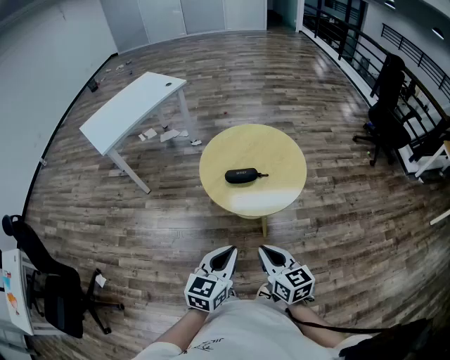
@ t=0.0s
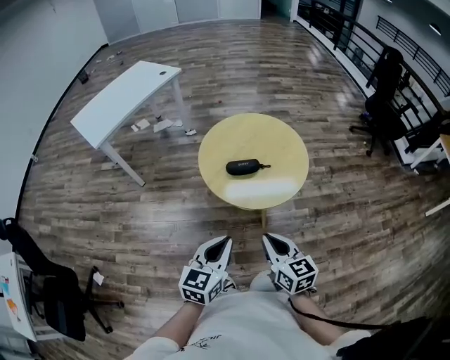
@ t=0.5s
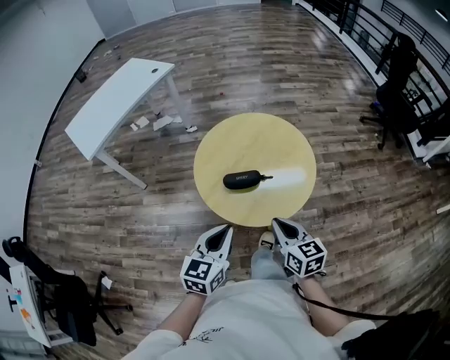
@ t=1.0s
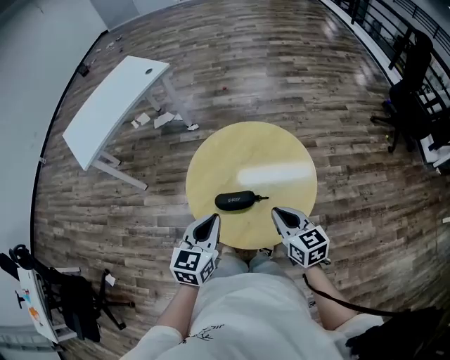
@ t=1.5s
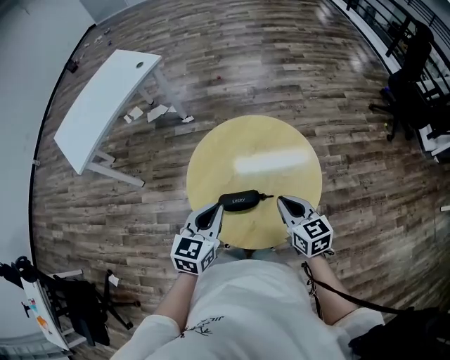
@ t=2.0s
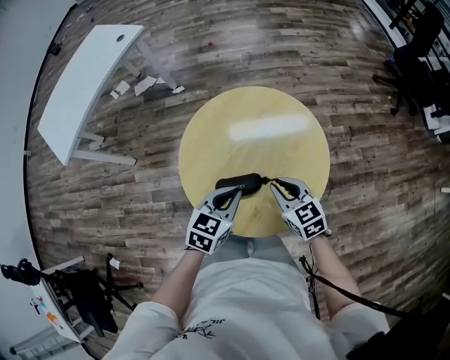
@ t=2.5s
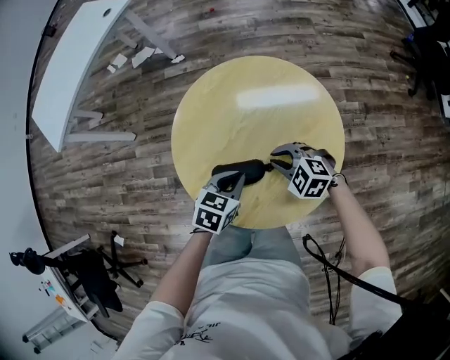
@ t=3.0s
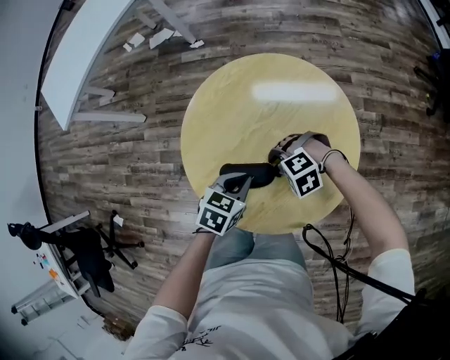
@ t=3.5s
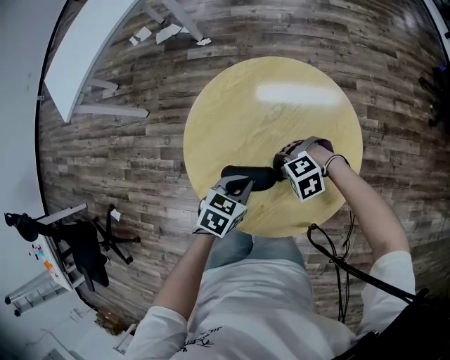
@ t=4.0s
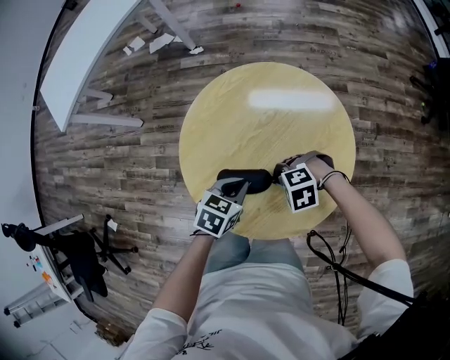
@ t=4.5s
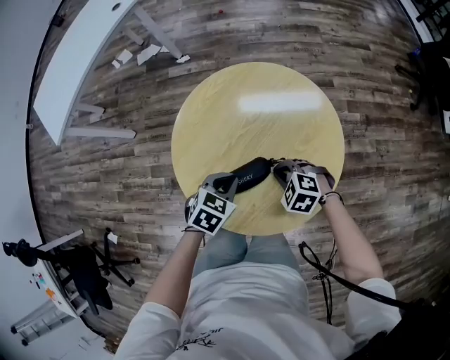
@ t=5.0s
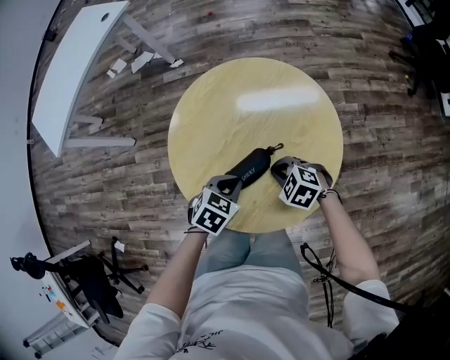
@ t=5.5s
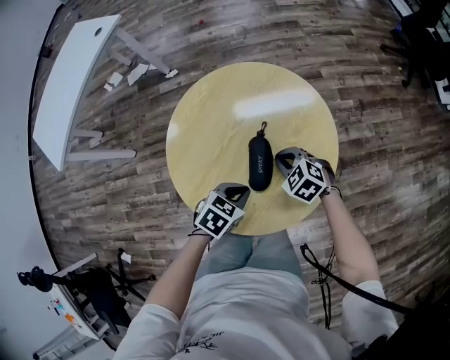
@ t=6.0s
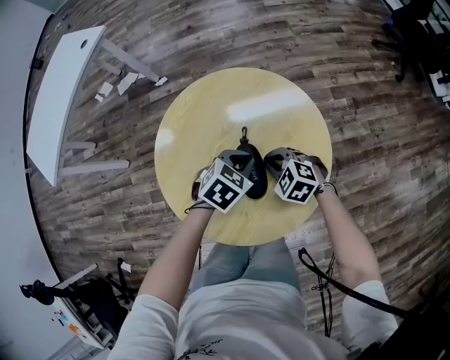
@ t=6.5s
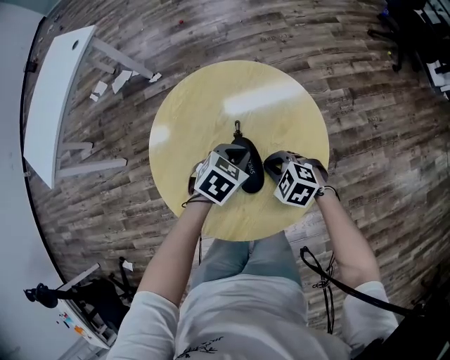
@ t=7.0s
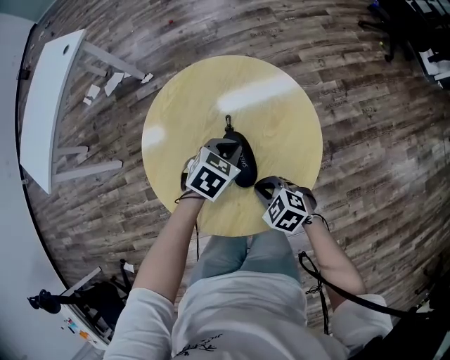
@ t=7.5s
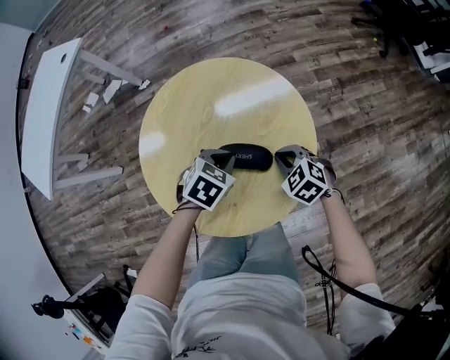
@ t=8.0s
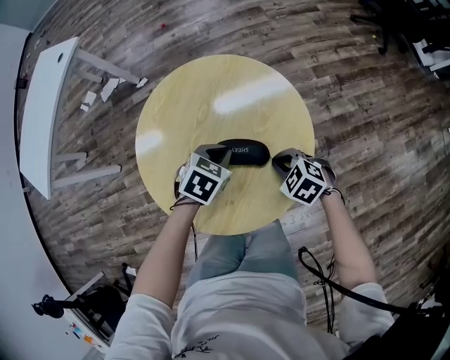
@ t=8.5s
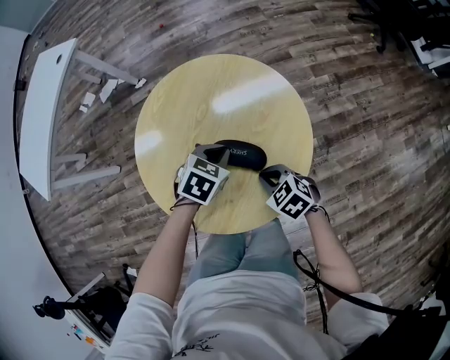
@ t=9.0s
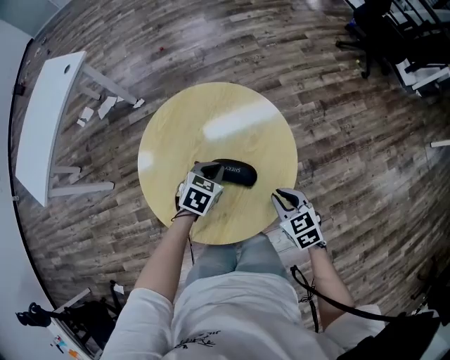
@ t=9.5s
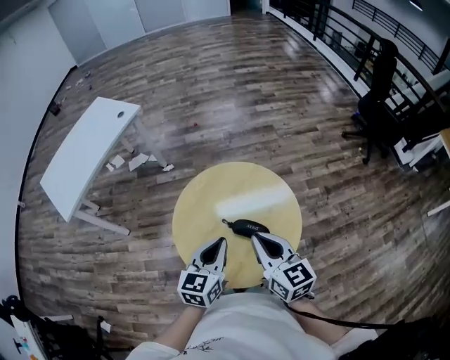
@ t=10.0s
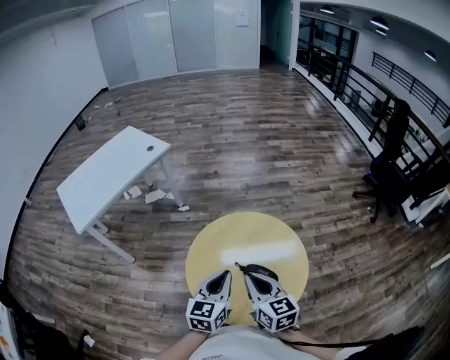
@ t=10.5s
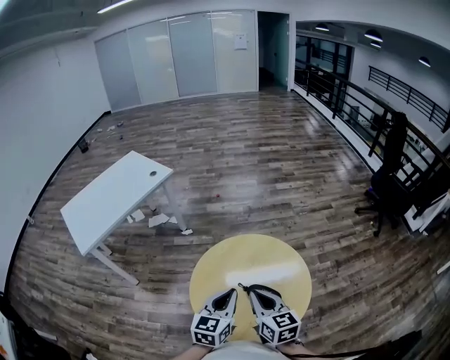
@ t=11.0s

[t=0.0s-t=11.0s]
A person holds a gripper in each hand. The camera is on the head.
t=0.0s to t=2.0s: Both grippers travel together forward, approximately 40 cm.
t=2.0s to t=3.5s: The grippers both shift downward by about 25 cm. The right gripper angles its fingers downward, by about 40 degrees, while the left gripper swivels about 30 degrees.
t=3.5s to t=5.5s: The right gripper rolls clockwise, seen from behind, by approximately 50 degrees.
t=5.5s to t=7.5s: The left gripper ends up some 15 cm from where it was; the right gripper shifts by approximately 5 cm.
t=9.0s to t=11.0s: The grippers both shift upward by approximately 30 cm. The right gripper tilts its fingers roughly 40 degrees upward. Meanwhile the left gripper tilts its fingers approximately 40 degrees upward.

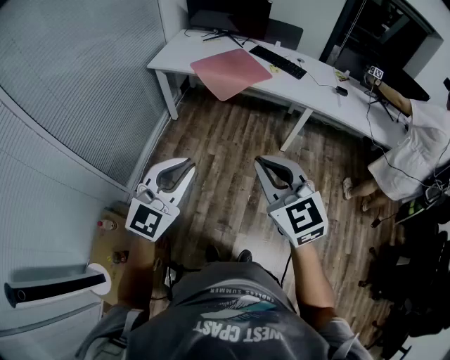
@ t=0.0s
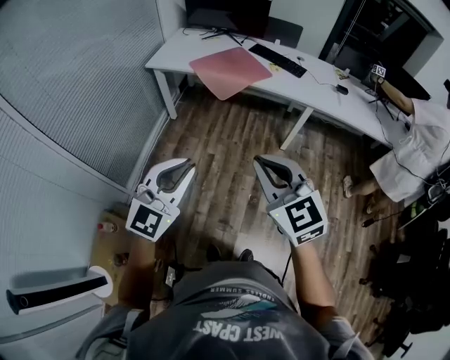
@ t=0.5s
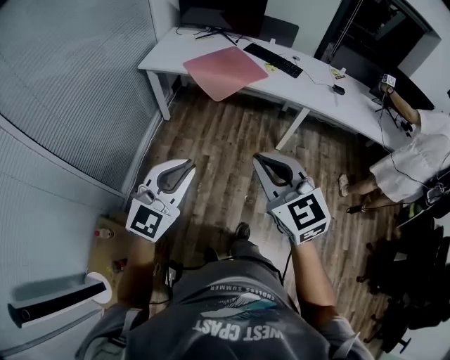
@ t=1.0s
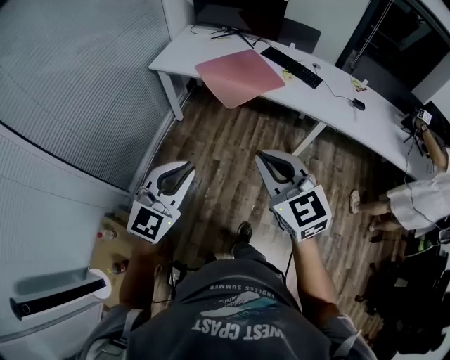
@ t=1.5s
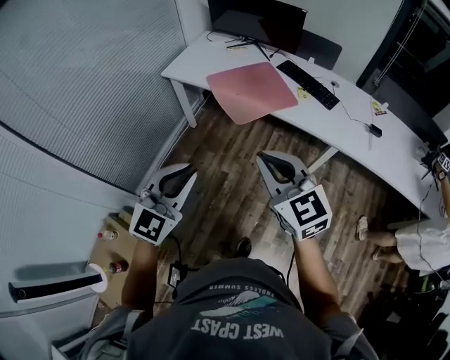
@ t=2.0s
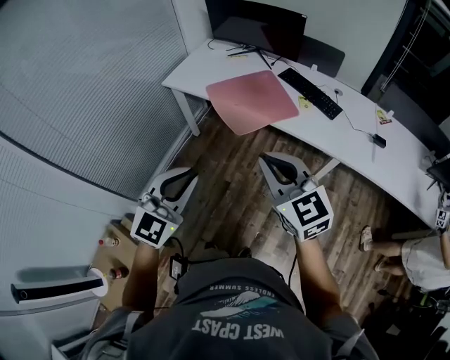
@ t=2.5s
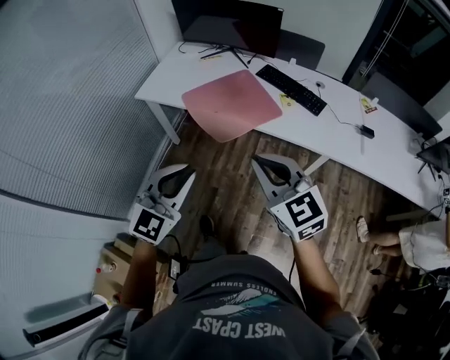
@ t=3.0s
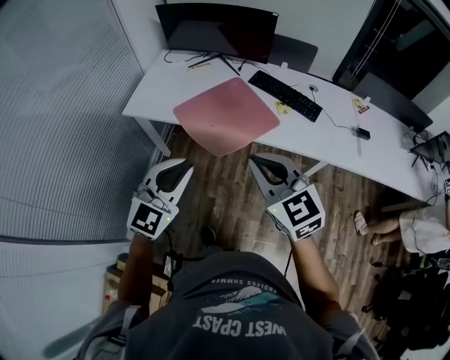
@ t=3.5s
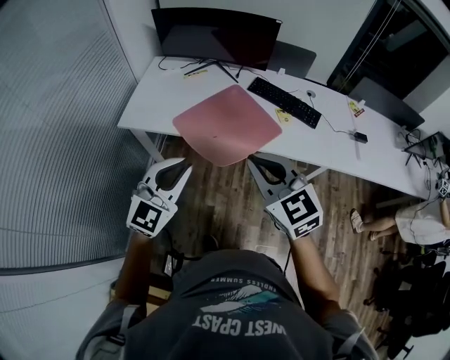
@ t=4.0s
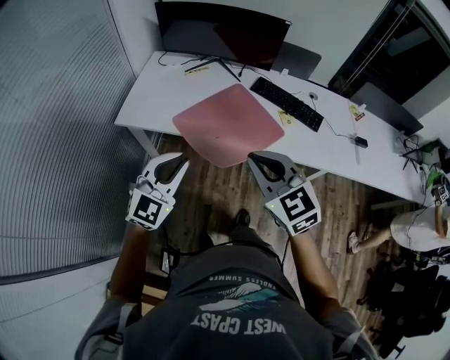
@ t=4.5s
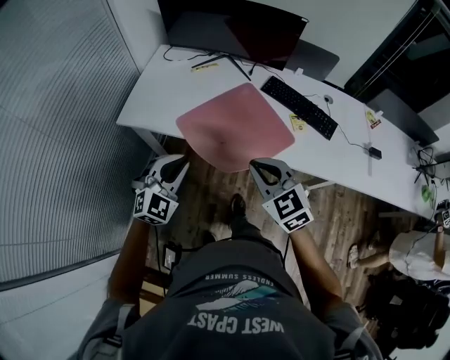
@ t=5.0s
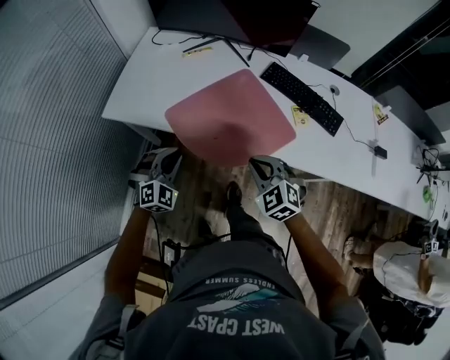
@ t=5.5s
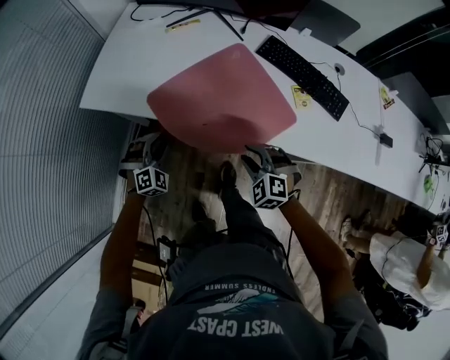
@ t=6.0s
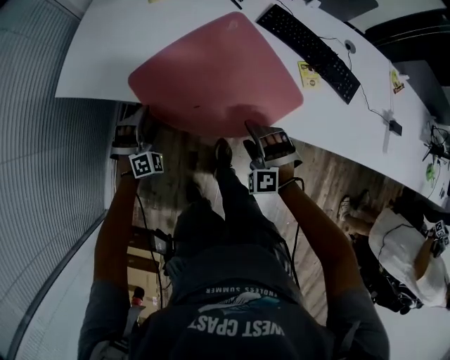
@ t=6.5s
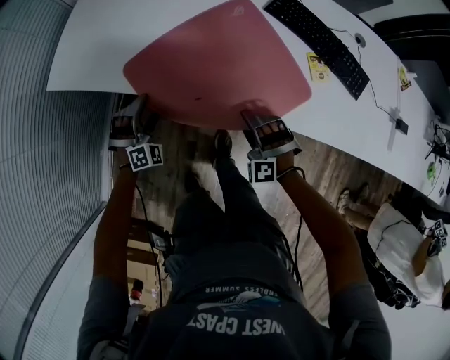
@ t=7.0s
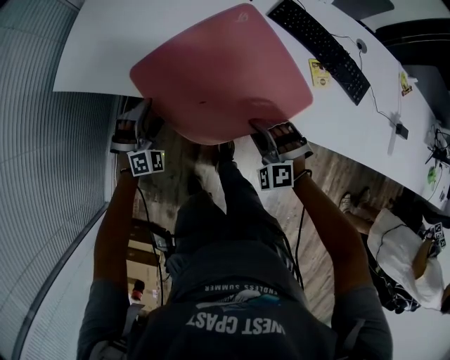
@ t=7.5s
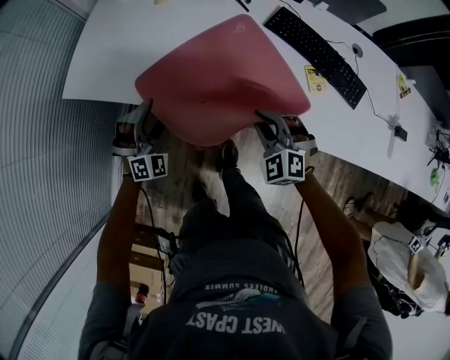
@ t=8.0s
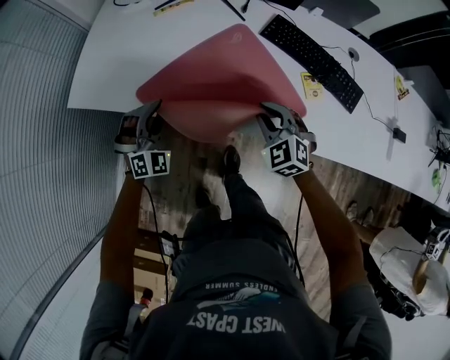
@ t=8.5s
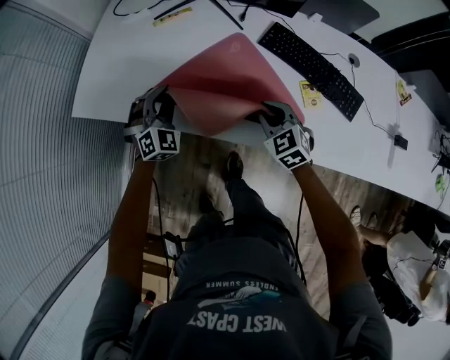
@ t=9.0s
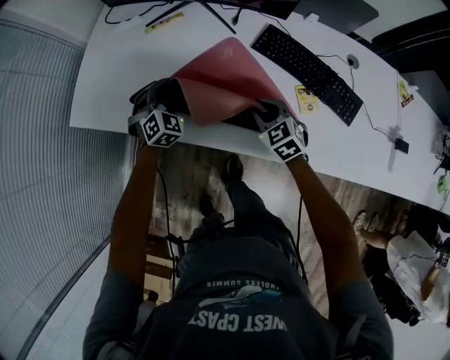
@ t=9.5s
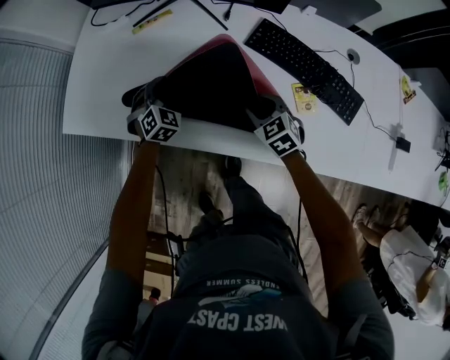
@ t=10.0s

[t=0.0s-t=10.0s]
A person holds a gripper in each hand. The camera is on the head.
t=0.0s to t=2.0s: Both grippers move forward, roughly 25 cm.
t=2.0s to t=4.0s: Both grippers travel together forward, approximately 30 cm.
t=4.0s to t=6.0s: The grippers both shift downward and forward by approximately 40 cm. The left gripper tilts its fingers roughly 30 degrees downward; the right gripper tips its fingers downward by roughly 30 degrees, and opens its fingers.
t=6.0s to t=8.0s: The right gripper is displaced forward by about 10 cm, goes downward and returns, roughly 10 cm each way, and opens, then closes again. The left gripper travels forward by about 5 cm, reaches some 10 cm downward, then returns, and opens its fingers.
t=8.0s to t=10.0s: The right gripper travels forward, to the right and downward by about 15 cm, and rotates about 40 degrees. Meanwhile the left gripper shifts roughly 20 cm forward and to the right, rotates some 30 degrees, and closes its fingers.

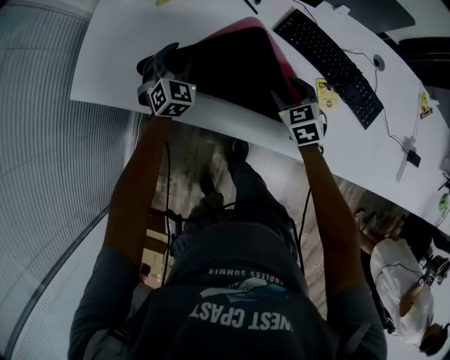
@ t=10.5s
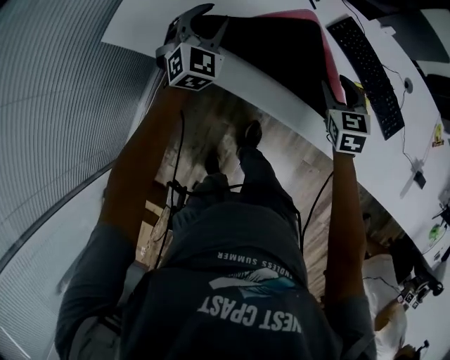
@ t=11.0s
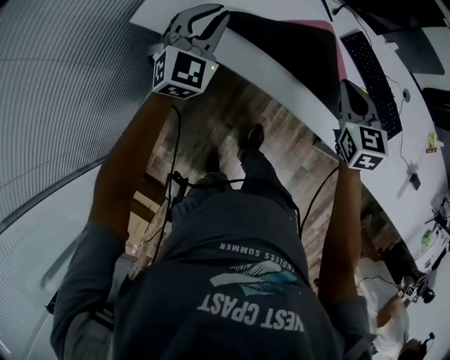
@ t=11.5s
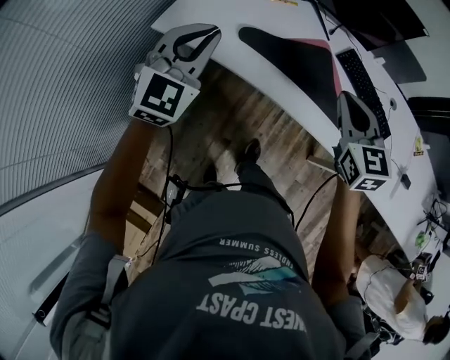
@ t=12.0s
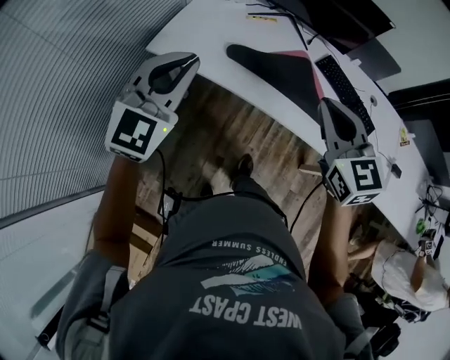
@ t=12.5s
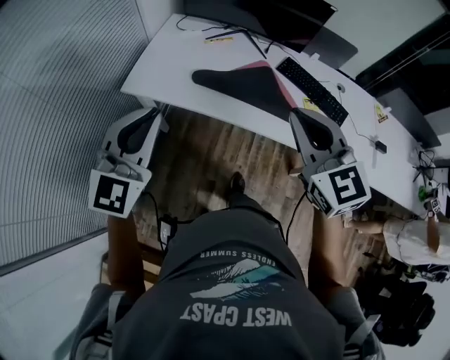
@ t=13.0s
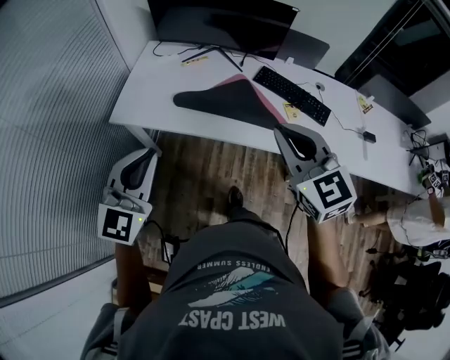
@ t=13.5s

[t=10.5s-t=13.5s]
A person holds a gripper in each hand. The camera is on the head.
t=10.5s to t=12.0s: The left gripper moves upward, backward and to the left, about 40 cm, swivels about 30 degrees, and closes up, while the right gripper travels upward, to the left and backward by approximately 35 cm, rotates some 30 degrees, and closes its fingers.
t=12.0s to t=13.5s: The left gripper is displaced backward by approximately 15 cm. Meanwhile the right gripper goes approximately 20 cm backward and upward.

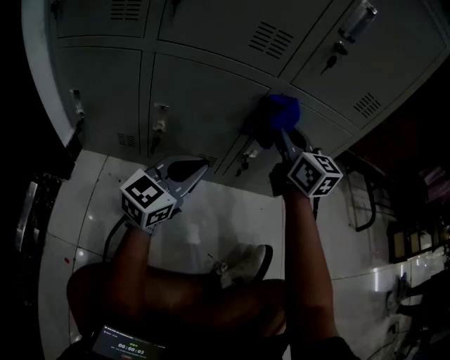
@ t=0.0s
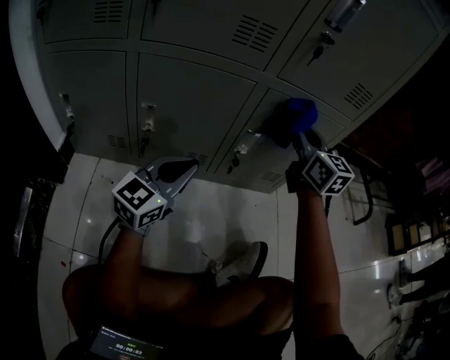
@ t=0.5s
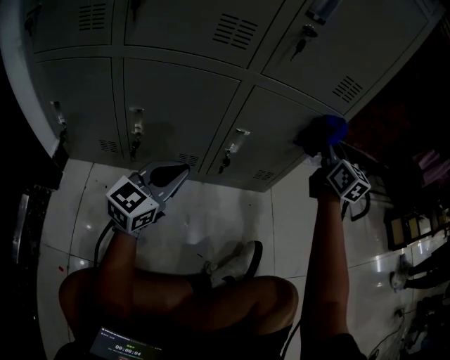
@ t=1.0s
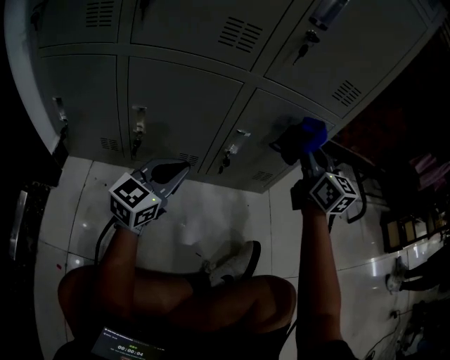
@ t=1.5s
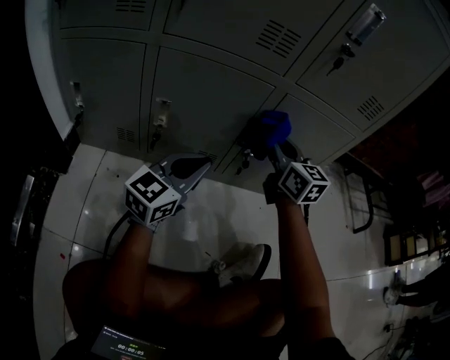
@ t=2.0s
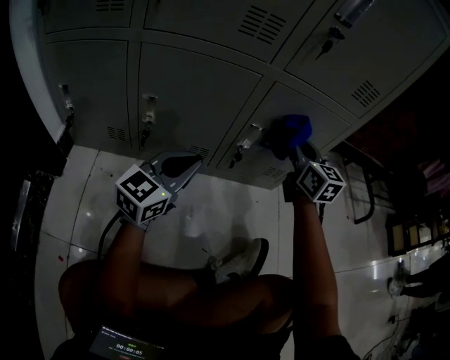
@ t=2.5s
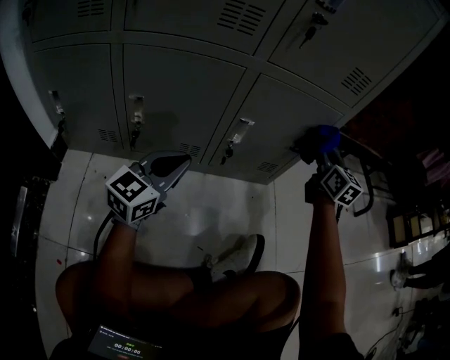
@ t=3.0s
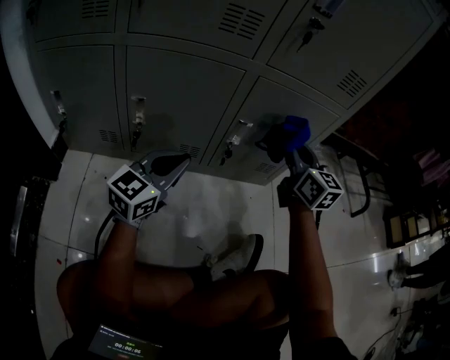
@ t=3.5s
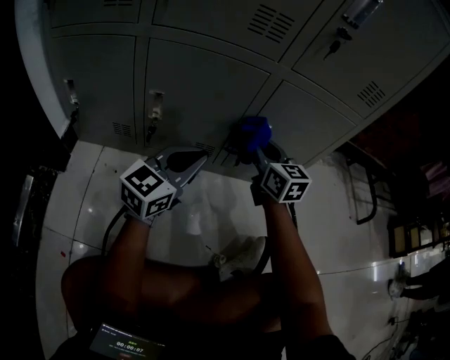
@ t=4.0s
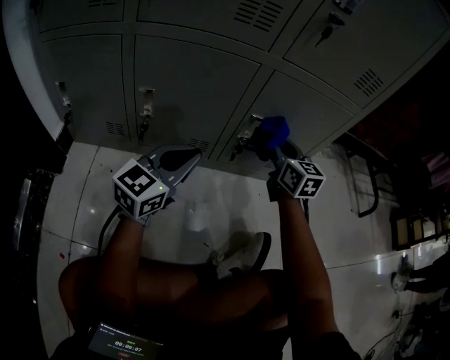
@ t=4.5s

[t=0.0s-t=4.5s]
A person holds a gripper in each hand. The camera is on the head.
t=0.0s to t=2.0s: The right gripper travels downward by about 5 cm, and goes to the right and returns, approximately 20 cm each way.
t=2.0s to t=4.5s: The right gripper swings left and right, roughly 25 cm each way, with 2 reversals.
